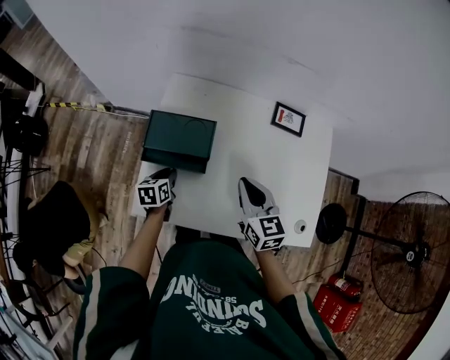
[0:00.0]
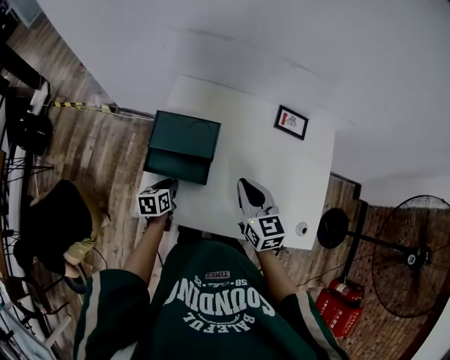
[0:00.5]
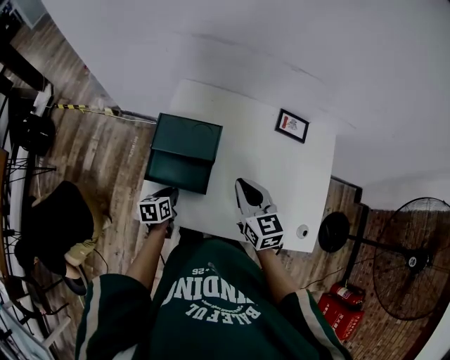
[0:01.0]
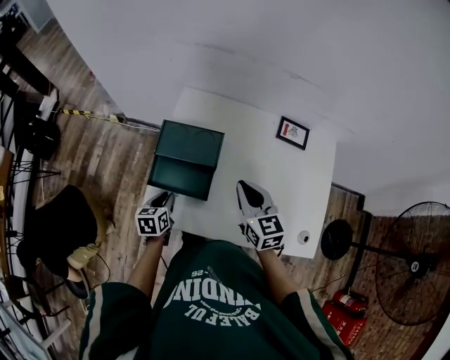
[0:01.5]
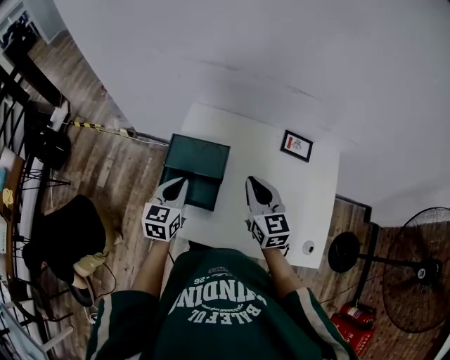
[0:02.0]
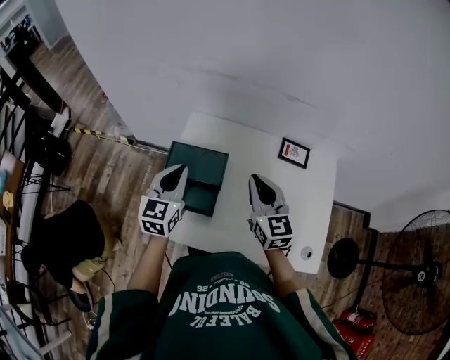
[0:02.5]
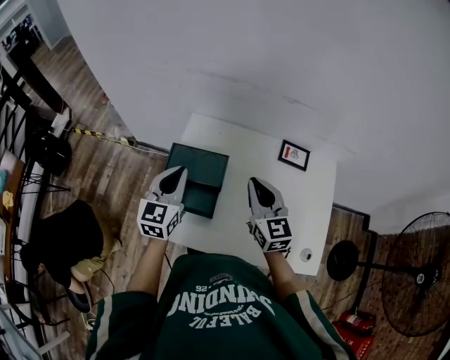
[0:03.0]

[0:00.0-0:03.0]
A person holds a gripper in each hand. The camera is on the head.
0:00.0 to 0:01.5: The left gripper goes about 5 cm backward.
0:01.5 to 0:03.0: The right gripper goes roughly 10 cm upward, while the left gripper moves upward and forward, some 25 cm, and points its fingers about 30 degrees further upward.

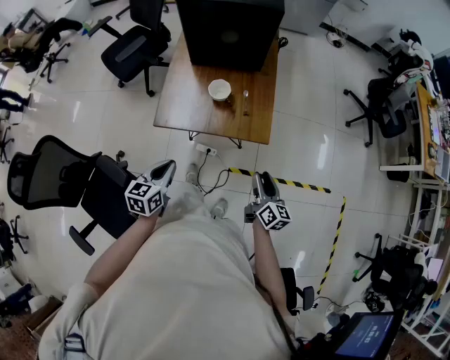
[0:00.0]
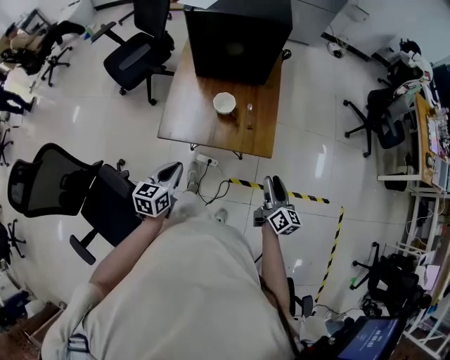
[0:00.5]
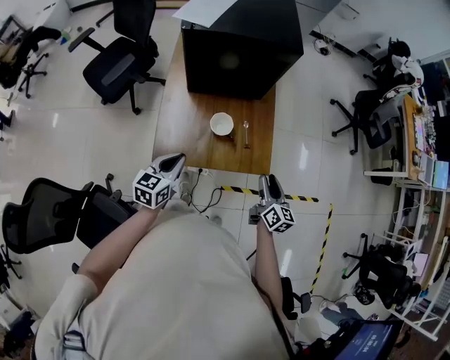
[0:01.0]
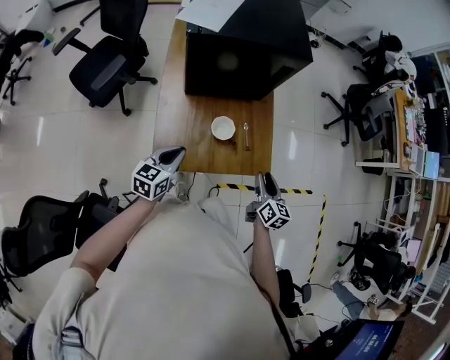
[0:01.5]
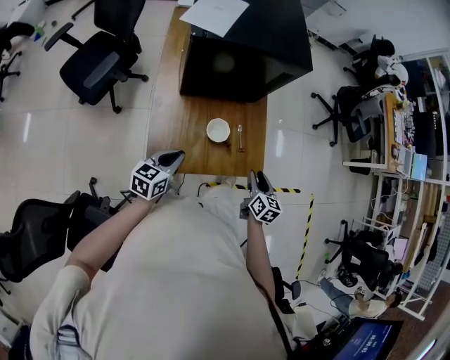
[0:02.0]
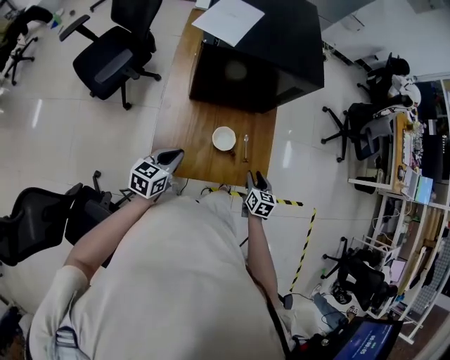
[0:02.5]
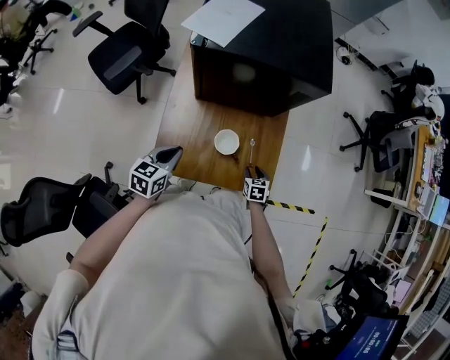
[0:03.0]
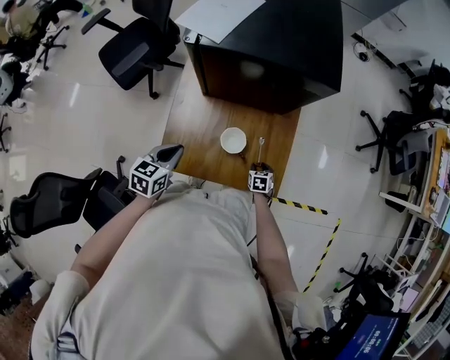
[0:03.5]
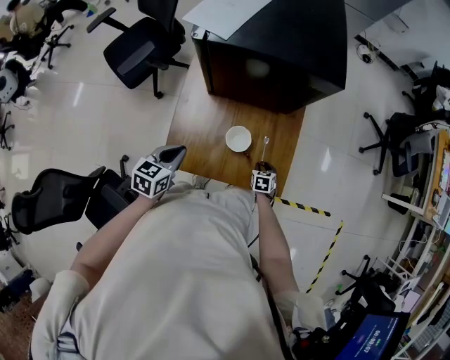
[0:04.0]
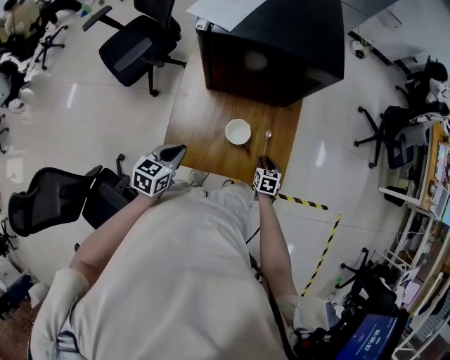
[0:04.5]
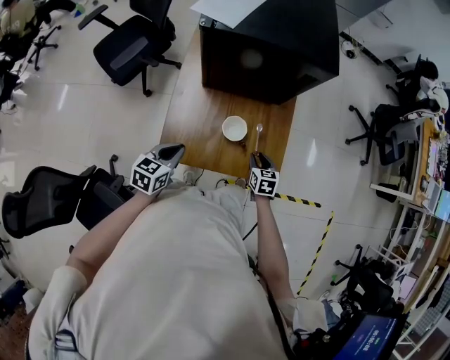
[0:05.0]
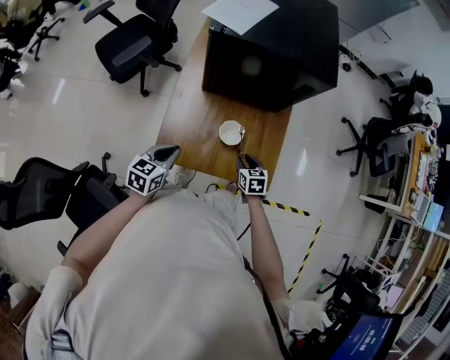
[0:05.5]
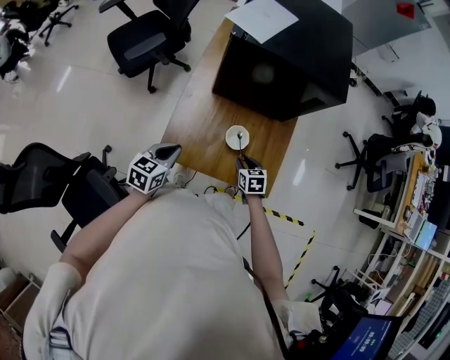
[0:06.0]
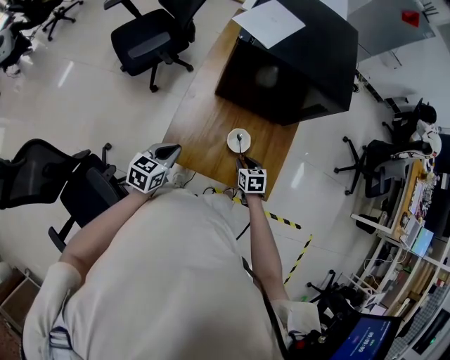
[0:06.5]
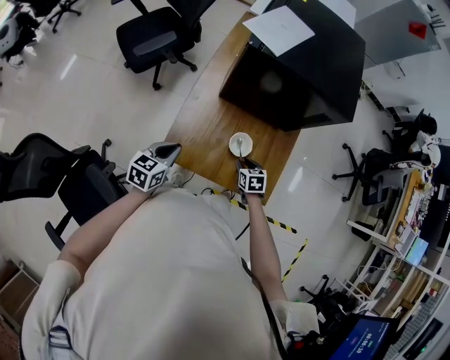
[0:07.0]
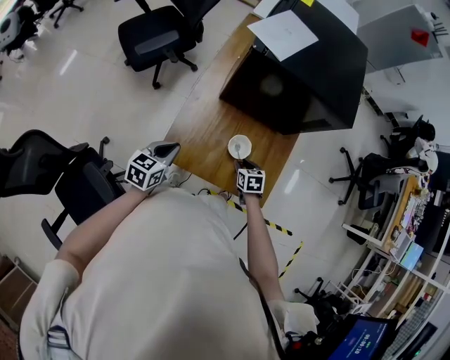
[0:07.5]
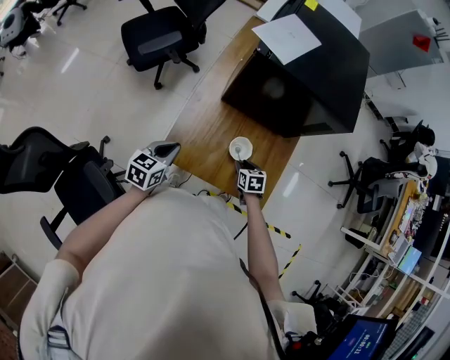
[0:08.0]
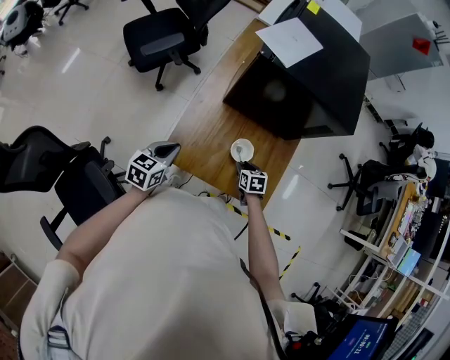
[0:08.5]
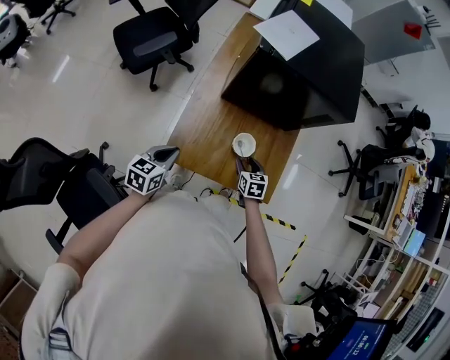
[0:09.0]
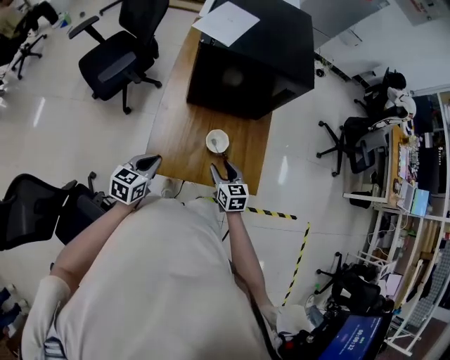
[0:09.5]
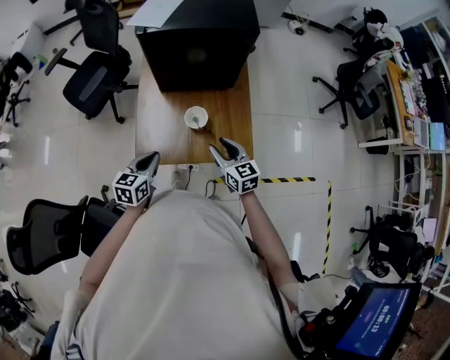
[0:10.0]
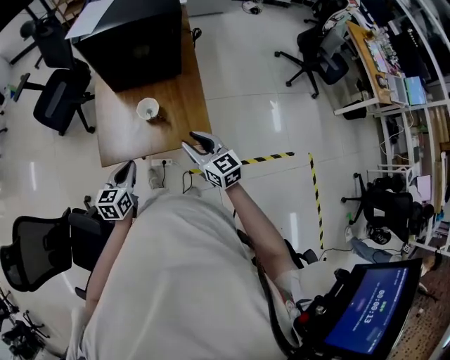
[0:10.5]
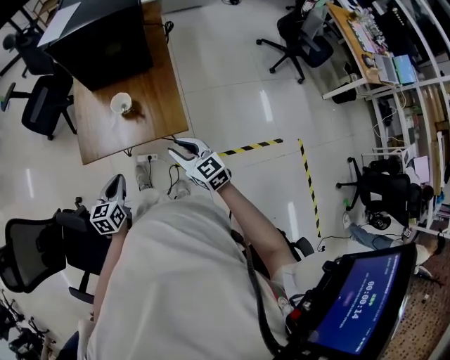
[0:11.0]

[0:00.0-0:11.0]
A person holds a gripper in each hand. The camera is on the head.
0:00.0 to 0:02.0: The grippers both shift forward and to the left by roughly 25 cm. The left gripper rotates about 20 degrees. Meanwhile the right gripper swivels about 30 degrees.
0:02.0 to 0:03.5: The right gripper goes about 25 cm downward, and tilts its fingers about 30 degrees downward.
0:03.5 to 0:05.5: The left gripper goes about 5 cm backward. Meanwhile the right gripper heads upward and to the left, covering approximately 15 cm.
0:05.5 to 0:07.5: The right gripper changes place by roughly 5 cm.
0:07.5 to 0:09.0: The right gripper opens its fingers.
0:09.0 to 0:11.0: The left gripper travels to the right and backward by about 30 cm. The right gripper shifts roughly 35 cm backward, upward and to the right, tilts its fingers roughly 30 degrees upward, and closes up.

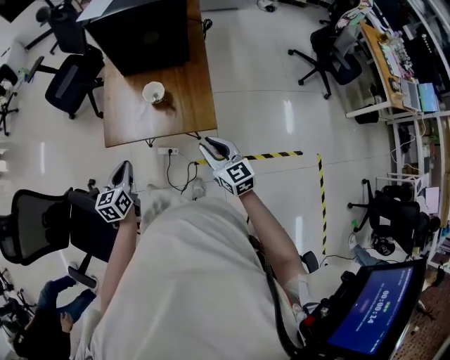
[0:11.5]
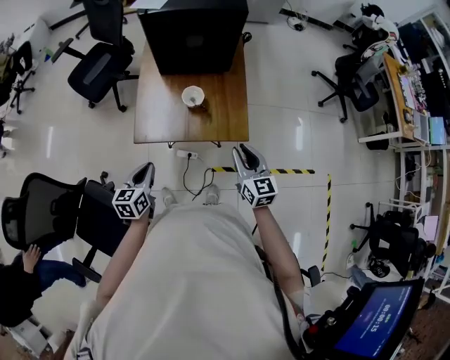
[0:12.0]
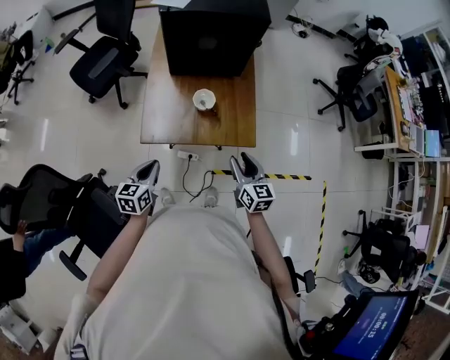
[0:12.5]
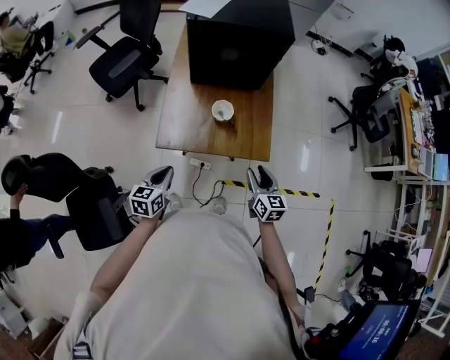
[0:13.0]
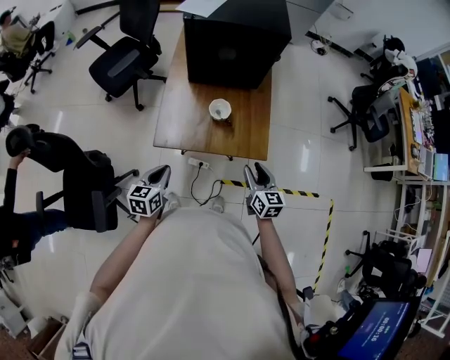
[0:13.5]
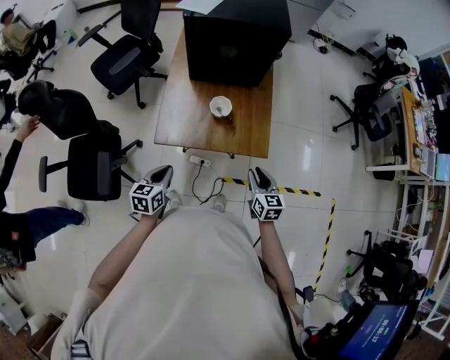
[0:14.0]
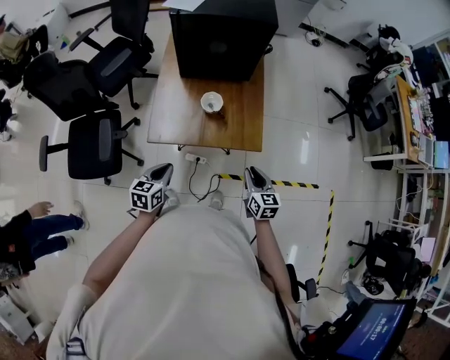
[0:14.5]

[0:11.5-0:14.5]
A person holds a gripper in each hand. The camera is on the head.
0:11.5 to 0:13.0: The right gripper moves to the left, some 5 cm. Meanwhile the left gripper moves to the left, roughly 10 cm.
0:13.0 to 0:14.5: The right gripper closes its fingers.

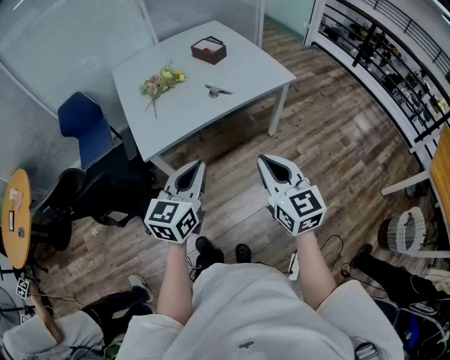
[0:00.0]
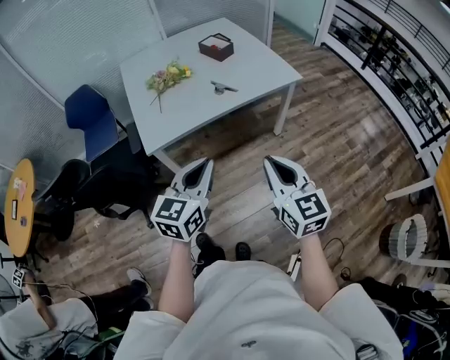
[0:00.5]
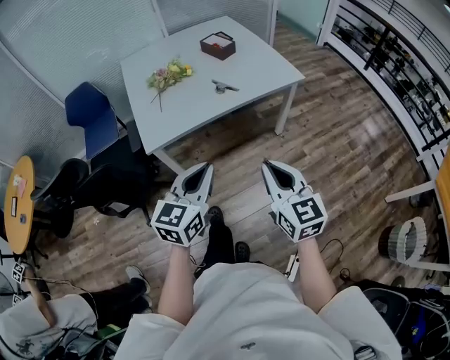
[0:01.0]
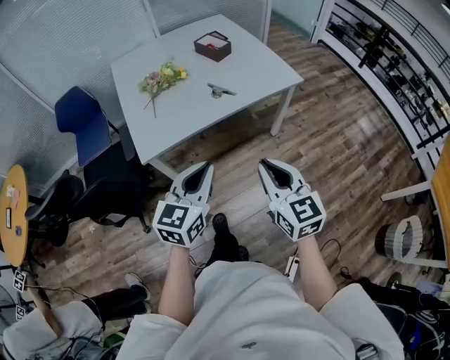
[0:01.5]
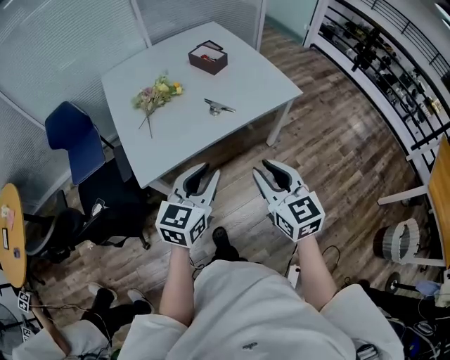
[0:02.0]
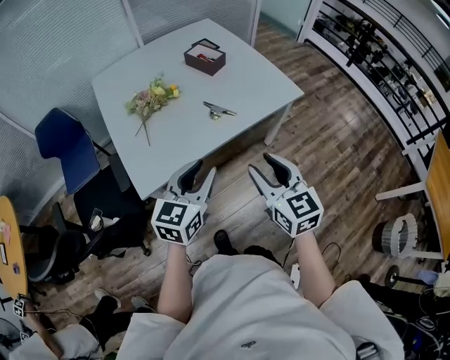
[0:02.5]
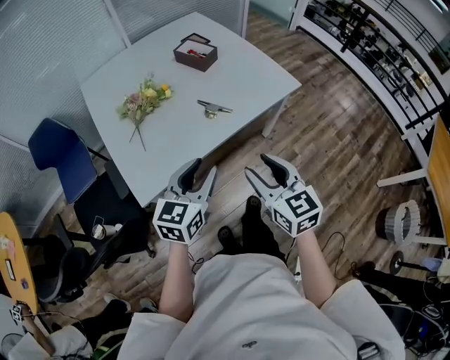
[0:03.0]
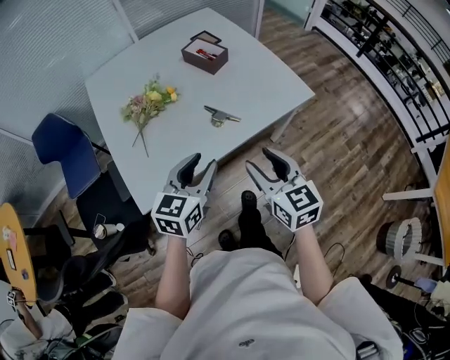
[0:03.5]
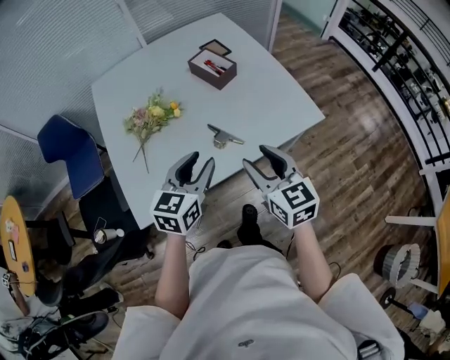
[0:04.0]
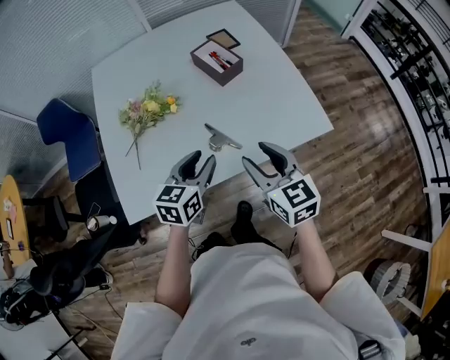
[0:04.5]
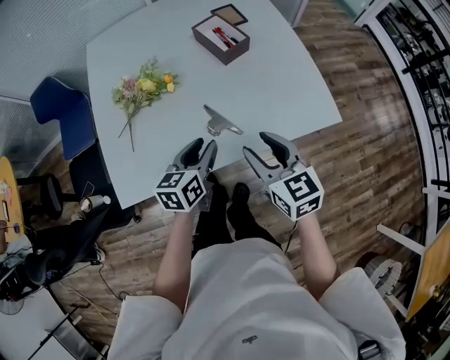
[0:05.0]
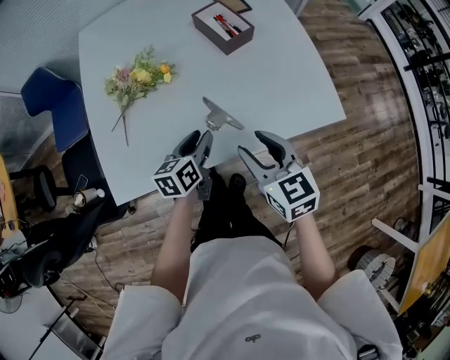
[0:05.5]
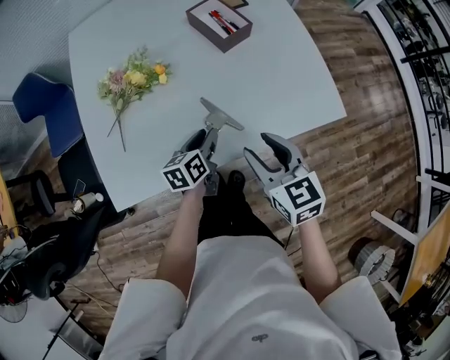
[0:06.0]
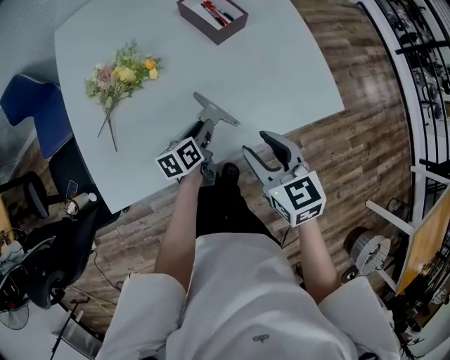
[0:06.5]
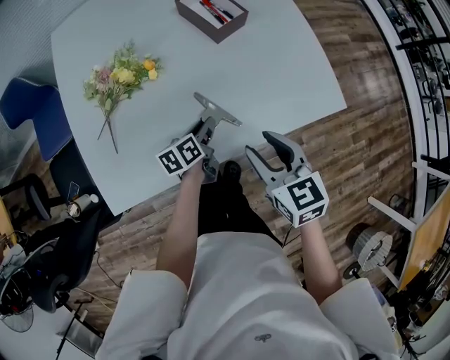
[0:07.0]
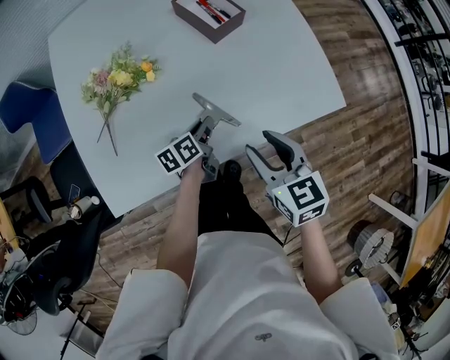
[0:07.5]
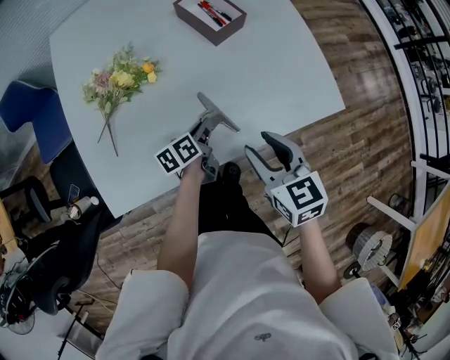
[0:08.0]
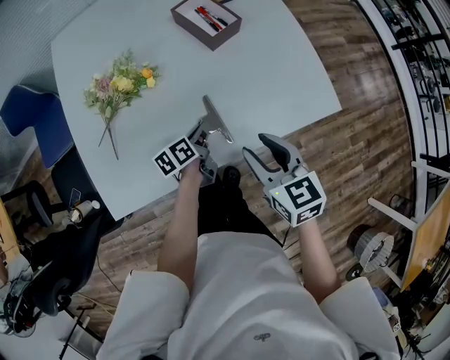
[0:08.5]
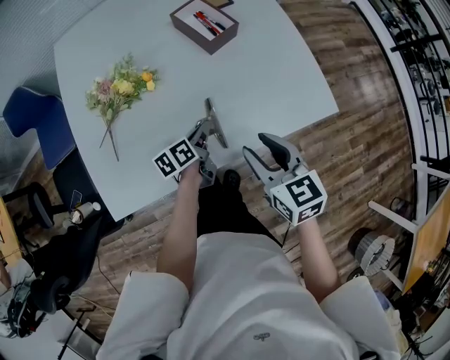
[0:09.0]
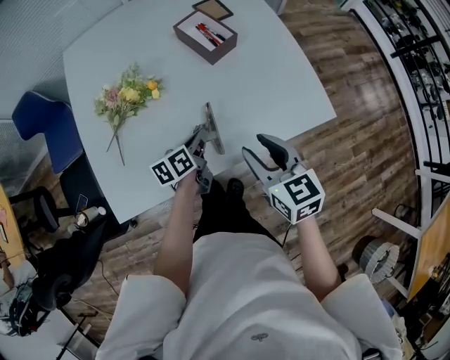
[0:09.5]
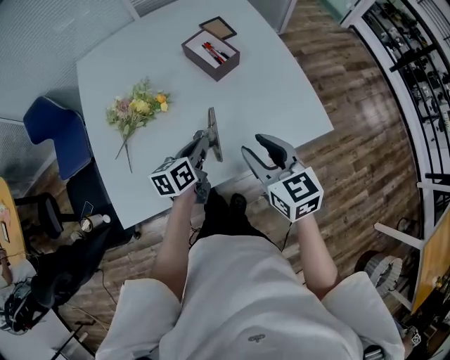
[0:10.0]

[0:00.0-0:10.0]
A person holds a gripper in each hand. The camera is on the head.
0:00.0 to 0:02.0: The two grippers go roughly 15 cm forward. The left gripper opens up. Meanwhile the right gripper opens up.
0:02.0 to 0:04.0: Both grippers move forward, approximately 30 cm. The right gripper opens.
0:04.0 to 0:06.0: The right gripper heads downward and forward, covering about 15 cm. The left gripper goes some 25 cm downward and forward, and swivels about 40 degrees.
0:06.0 to 0:08.0: The left gripper ends up about 5 cm from where it was, and closes.
0:08.0 to 0:10.0: The left gripper travels upward by approximately 15 cm, and swivels roughly 20 degrees. The right gripper shifts approximately 5 cm upward.
